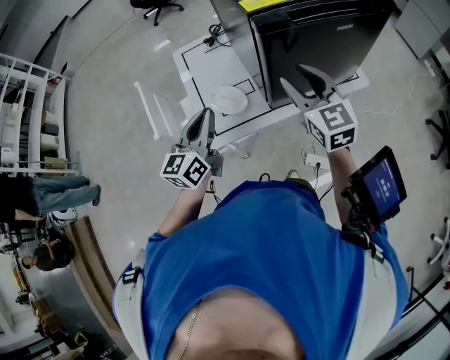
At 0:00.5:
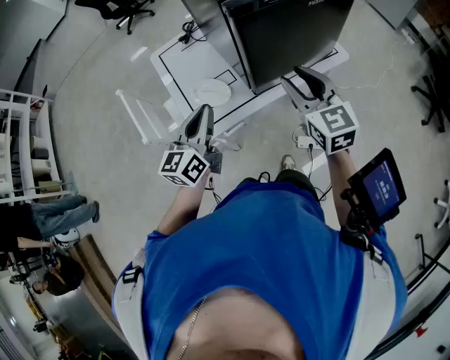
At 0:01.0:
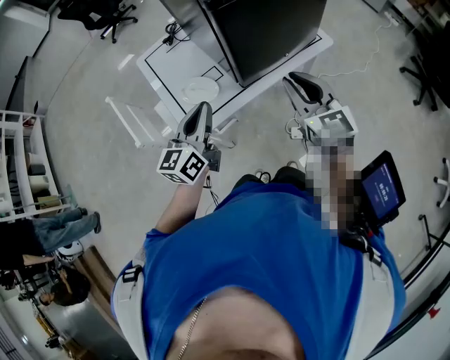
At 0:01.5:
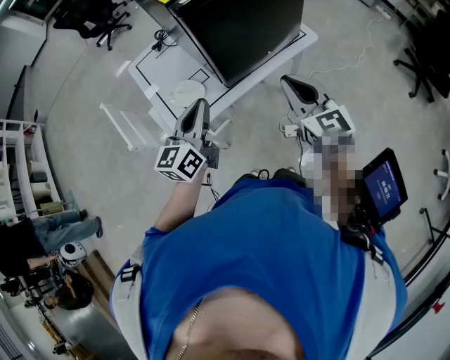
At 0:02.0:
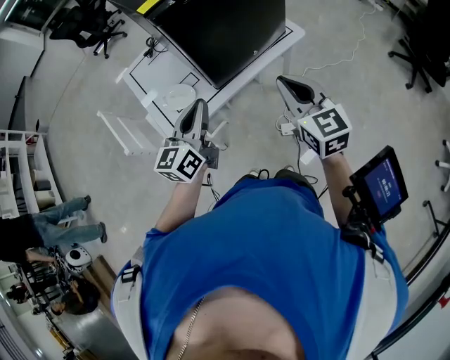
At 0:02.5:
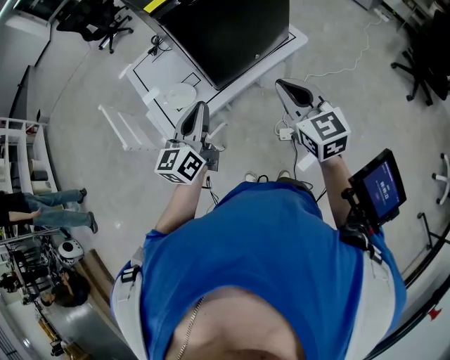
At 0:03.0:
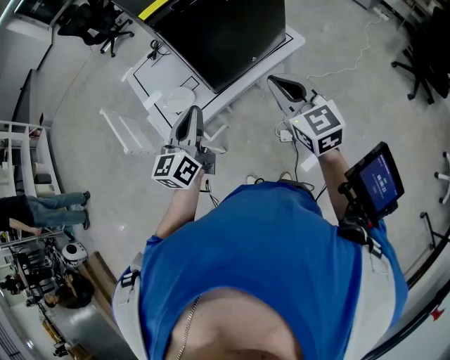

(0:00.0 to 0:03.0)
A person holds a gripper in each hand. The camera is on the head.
0:00.0 - 0:01.5: The left gripper travels to the right by roughly 10 cm. Meanwhile the right gripper moves backward and to the right, some 15 cm, and closes its fingers.
0:01.5 - 0:03.0: There are only small adjustments of the grippers.

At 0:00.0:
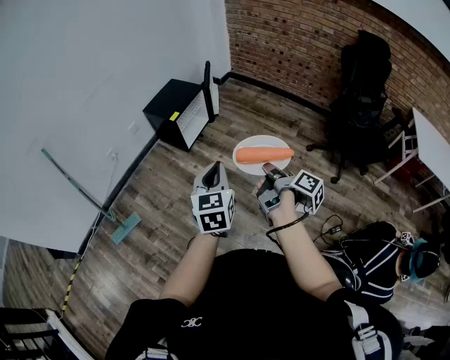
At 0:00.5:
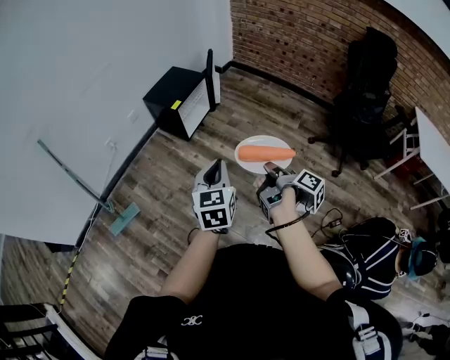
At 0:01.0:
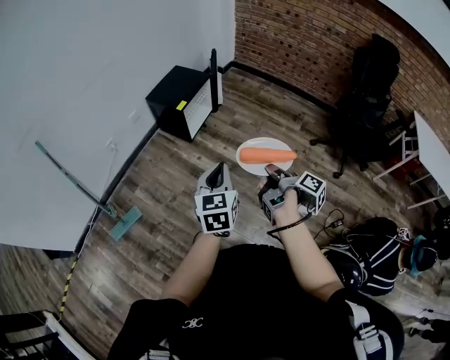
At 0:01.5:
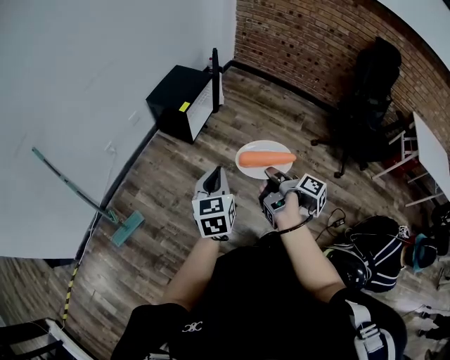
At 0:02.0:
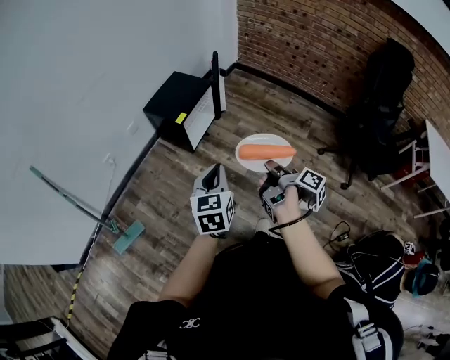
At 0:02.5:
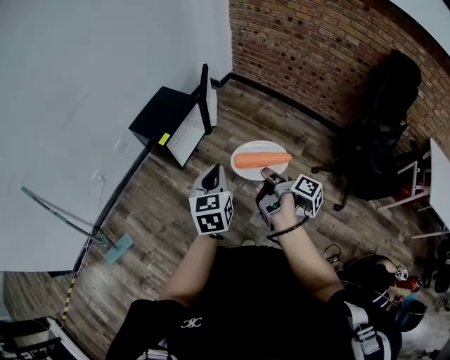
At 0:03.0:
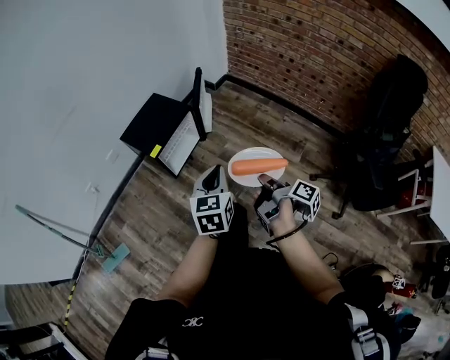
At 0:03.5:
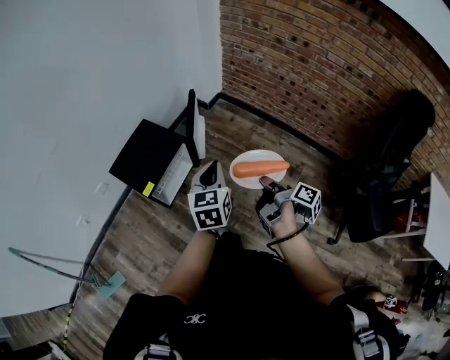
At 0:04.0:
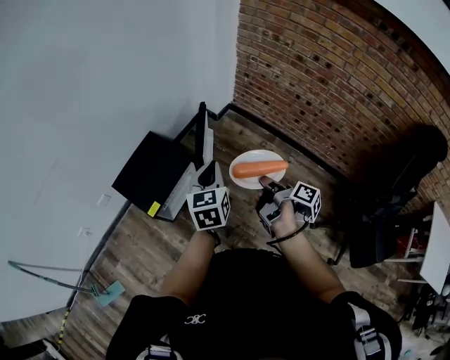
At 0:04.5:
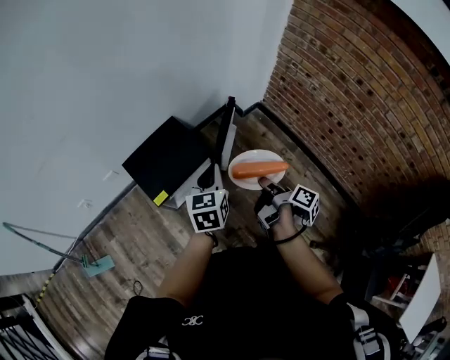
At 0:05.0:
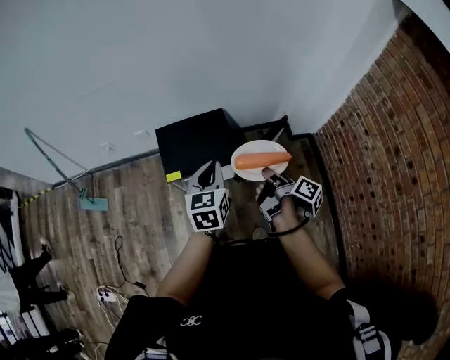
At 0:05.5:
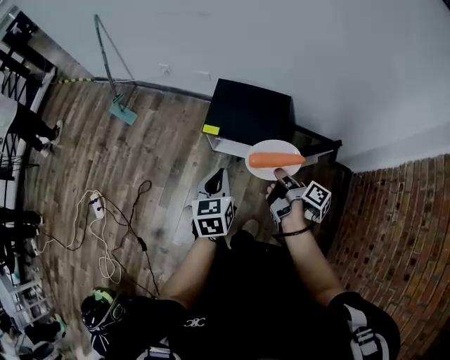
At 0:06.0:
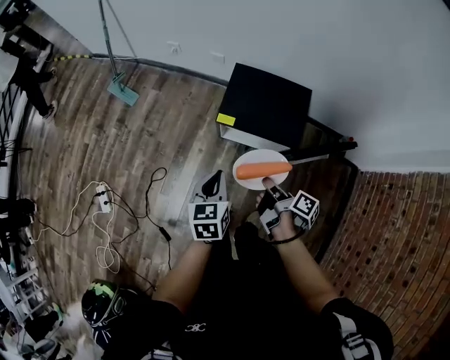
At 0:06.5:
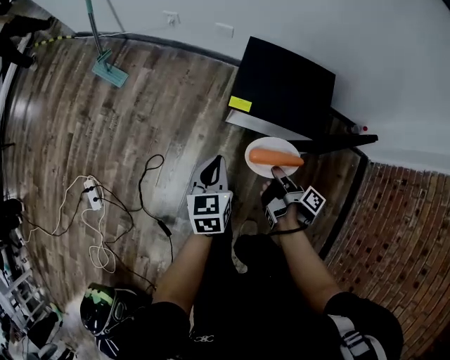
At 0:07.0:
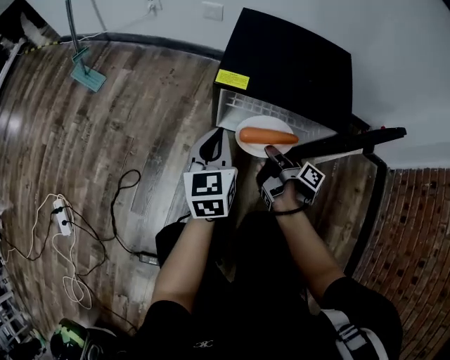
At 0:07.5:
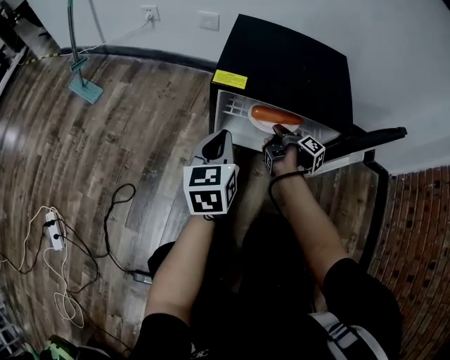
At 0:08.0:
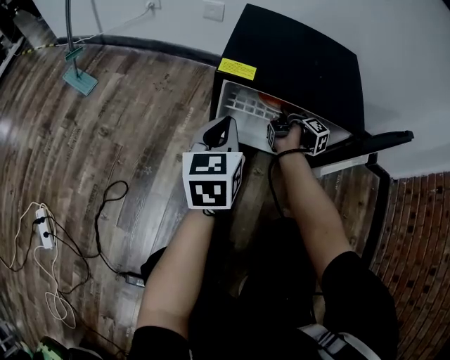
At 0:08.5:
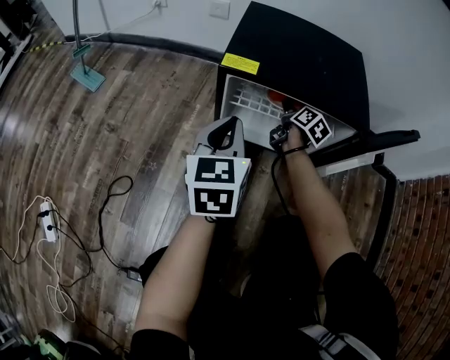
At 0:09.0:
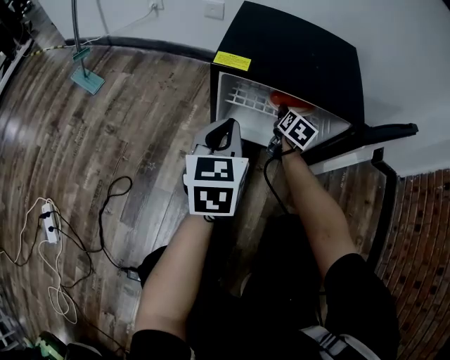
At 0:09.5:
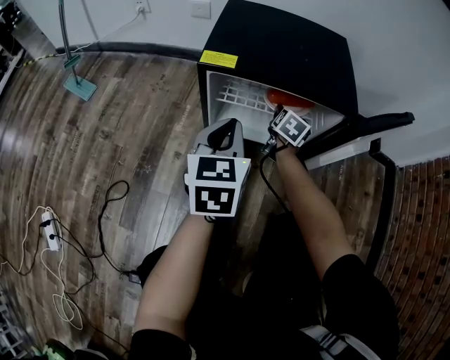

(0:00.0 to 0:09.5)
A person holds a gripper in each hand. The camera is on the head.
0:00.0 - 0:02.0: Both grippers move forward and to the left, roughly 20 cm.
0:02.0 - 0:04.0: Both grippers are carried forward, about 60 cm.
0:04.0 - 0:05.5: The left gripper changes place by approximately 15 cm, and changes its angle by about 70 degrees; the right gripper moves approximately 25 cm, and rotates some 70 degrees.
0:05.5 - 0:07.5: Both grippers move downward, about 50 cm.
0:07.5 - 0:09.5: The right gripper travels to the right by approximately 5 cm, rolls counterclockwise, seen from behind, by about 60 degrees, and opens up.

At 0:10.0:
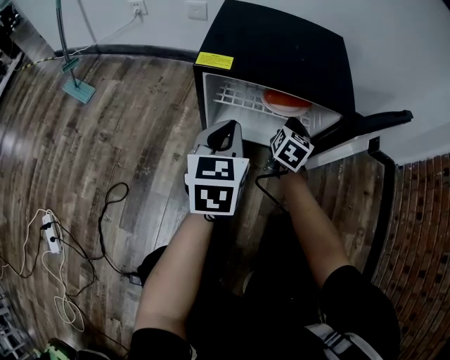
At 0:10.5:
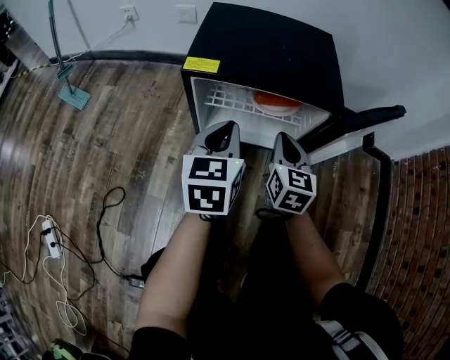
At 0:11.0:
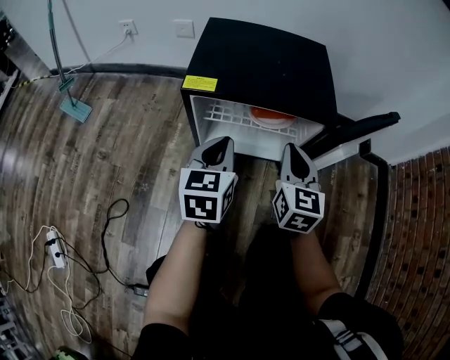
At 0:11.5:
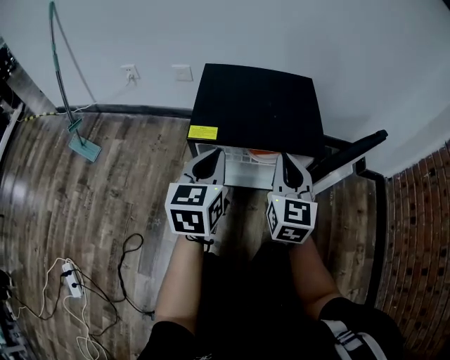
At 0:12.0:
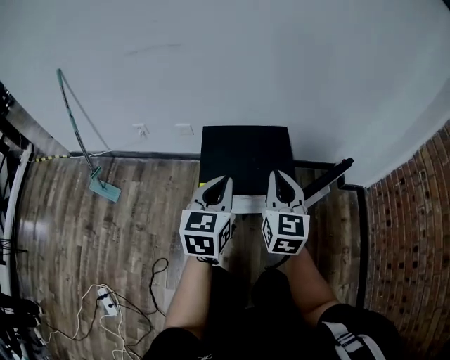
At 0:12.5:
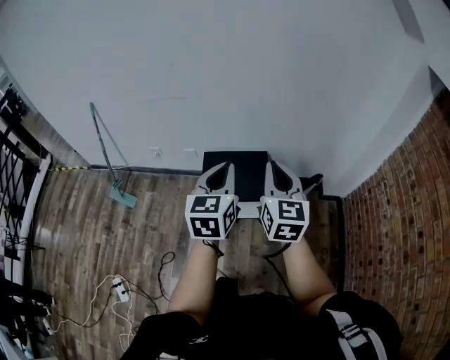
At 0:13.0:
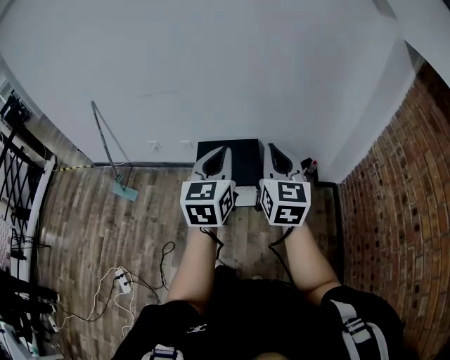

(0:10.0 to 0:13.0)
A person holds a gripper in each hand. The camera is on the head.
0:10.0 - 0:11.5: The left gripper shifts roughly 10 cm upward. Meanwhile the right gripper goes some 25 cm upward, and swivels some 30 degrees.
0:11.5 - 0:13.0: Both grippers move upward, approximately 60 cm.

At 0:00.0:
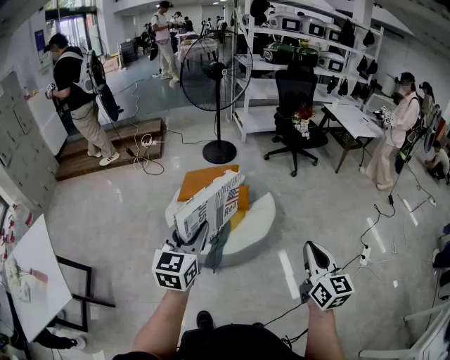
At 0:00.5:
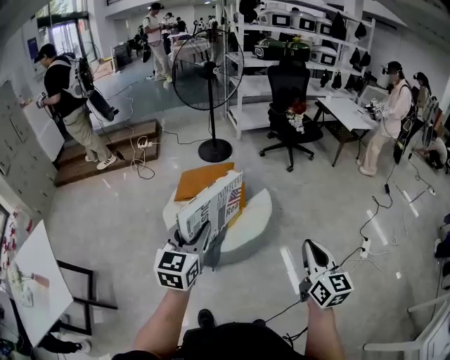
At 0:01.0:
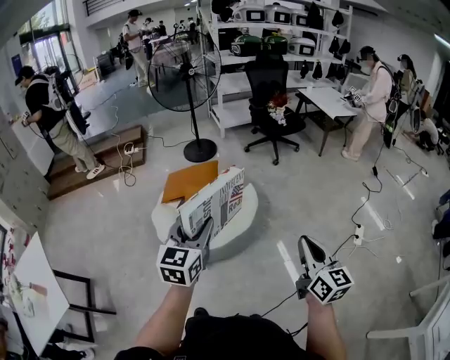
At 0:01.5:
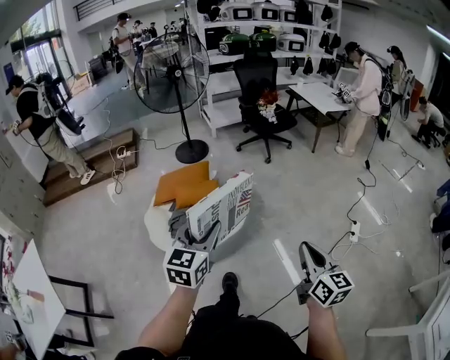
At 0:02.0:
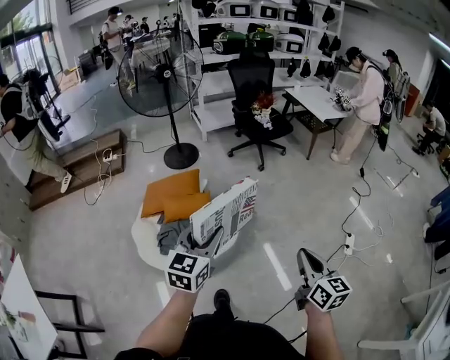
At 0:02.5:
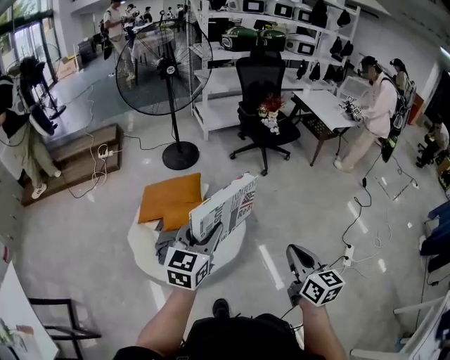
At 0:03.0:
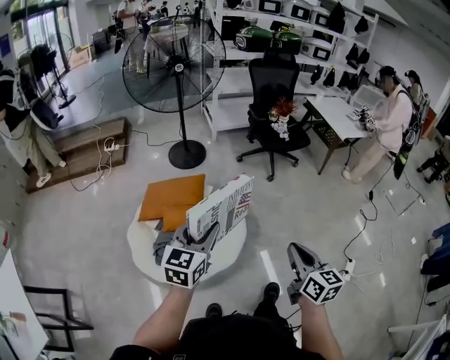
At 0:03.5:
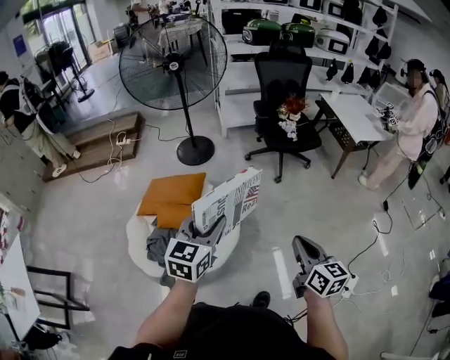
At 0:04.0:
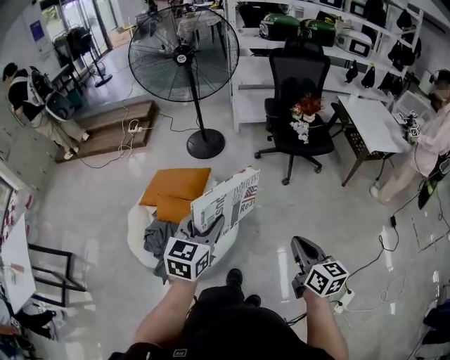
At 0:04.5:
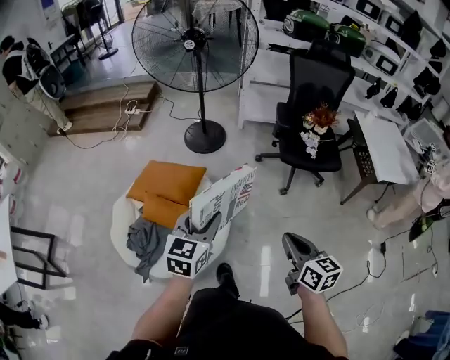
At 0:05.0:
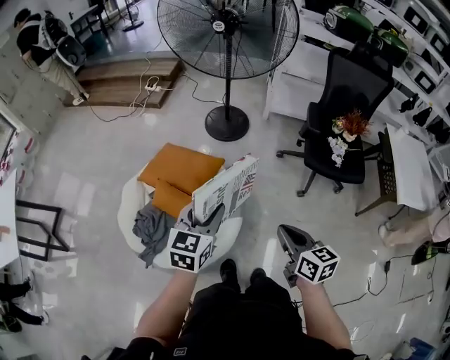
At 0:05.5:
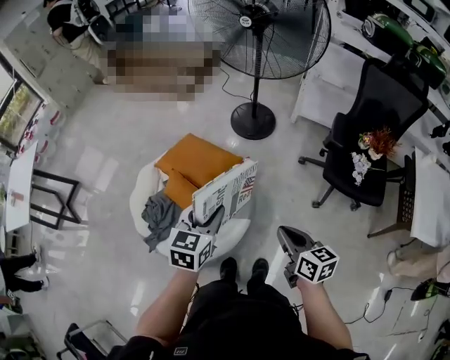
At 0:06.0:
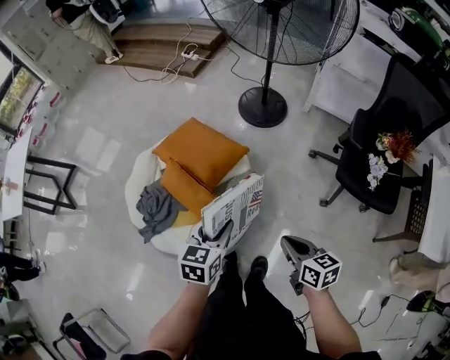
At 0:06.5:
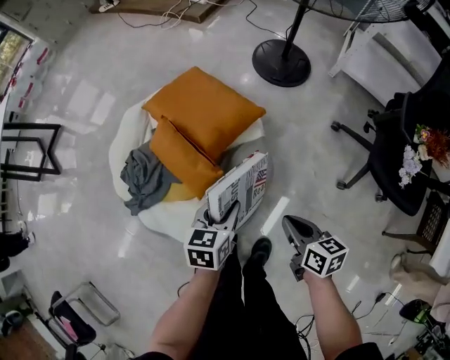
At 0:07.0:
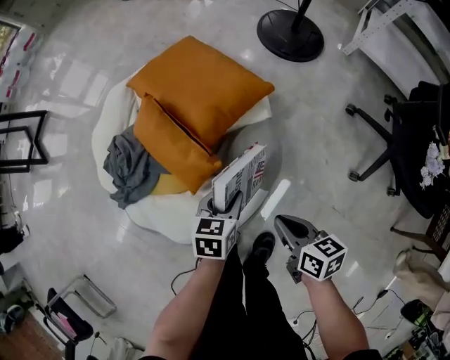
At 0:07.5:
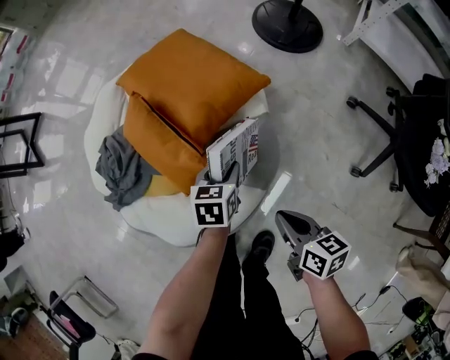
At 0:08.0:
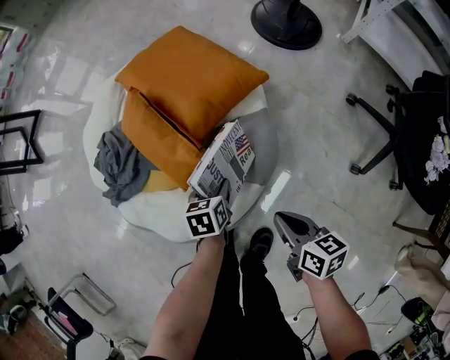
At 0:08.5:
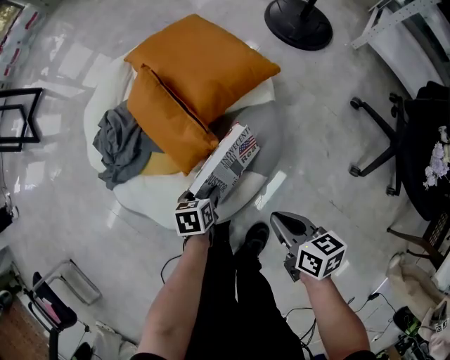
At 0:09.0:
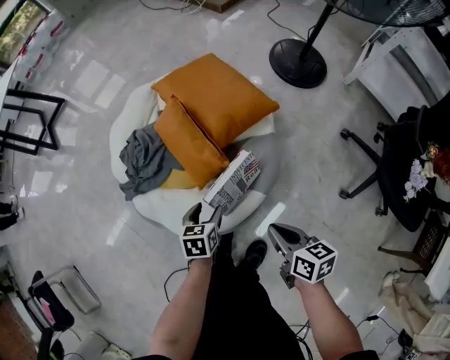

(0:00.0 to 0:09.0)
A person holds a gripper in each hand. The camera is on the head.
0:00.0 - 0:02.0: The grippers both shift to the right and forward by about 25 cm.
0:02.0 - 0:04.5: The pair of grippers is taken approximately 50 cm. The left gripper turns by some 30 degrees; the right gripper rotates about 40 degrees.
0:04.5 - 0:07.0: Both grippers move downward, approximately 50 cm. The right gripper swivels some 50 degrees. Meanwhile the left gripper tips its fingers downward by approximately 30 degrees.
0:07.0 - 0:09.0: The left gripper heads to the left and backward, covering approximately 15 cm, travels downward and back again, approximately 15 cm each way, and opens its fingers; the right gripper moves upward, roughly 5 cm.

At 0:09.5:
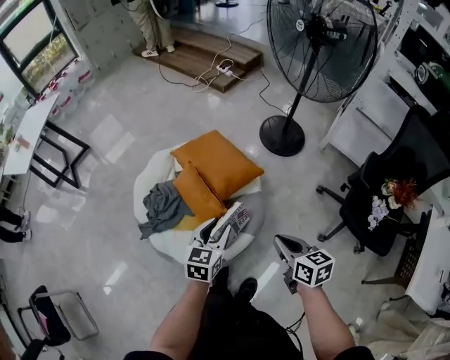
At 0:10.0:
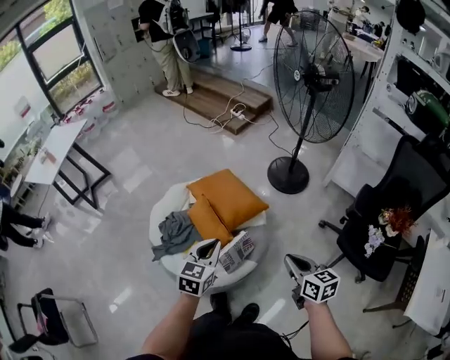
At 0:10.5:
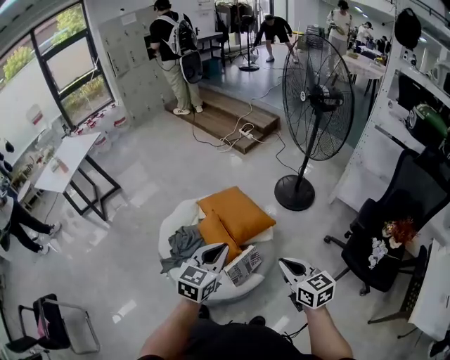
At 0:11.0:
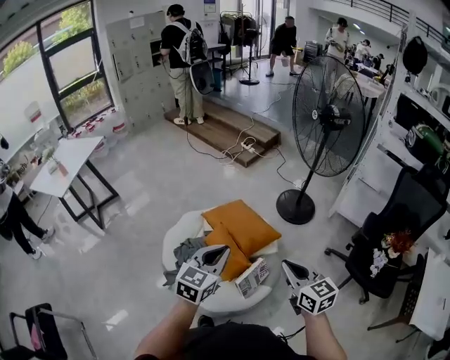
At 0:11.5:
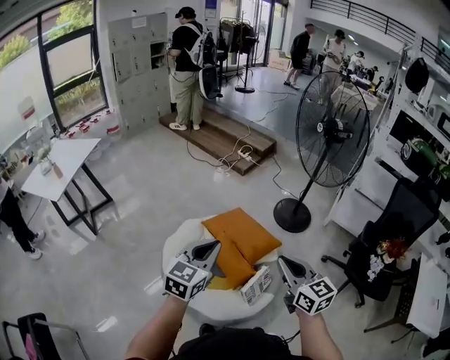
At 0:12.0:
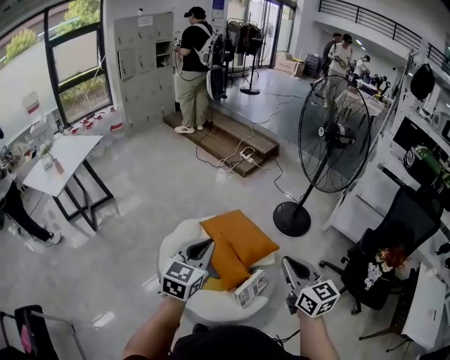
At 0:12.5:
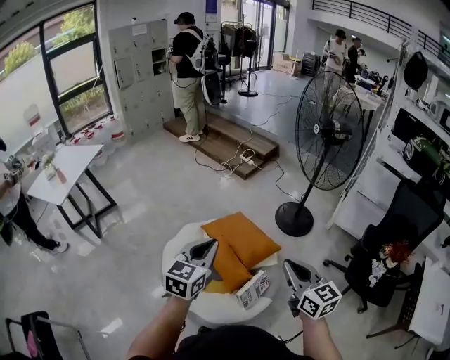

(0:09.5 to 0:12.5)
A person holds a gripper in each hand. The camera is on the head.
0:09.5 - 0:11.0: Both grippers travel together upward and to the left, about 25 cm. The right gripper turns by roughly 30 degrees; the left gripper closes its fingers.
0:11.0 - 0:12.5: The left gripper is displaced to the left and upward by some 10 cm, while the right gripper travels upward by some 5 cm, and travels to the left and back again, approximately 10 cm each way.
